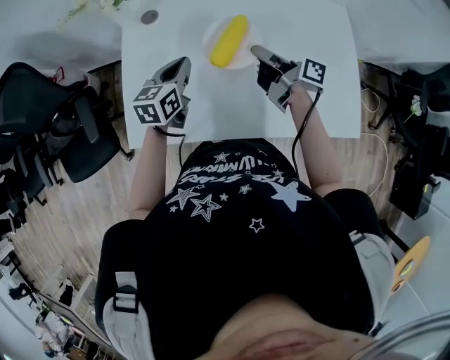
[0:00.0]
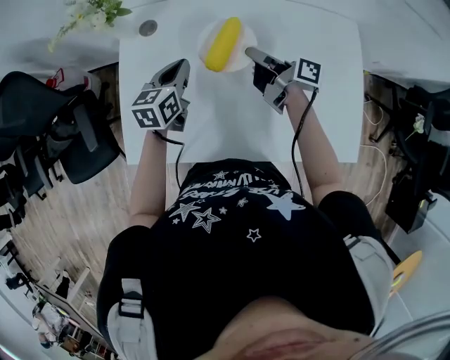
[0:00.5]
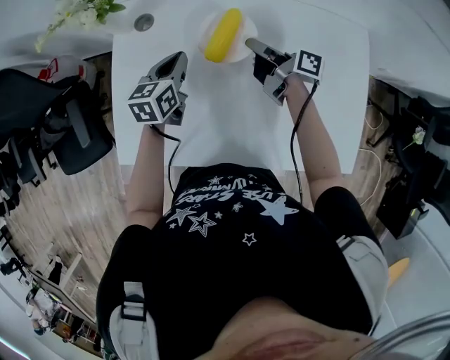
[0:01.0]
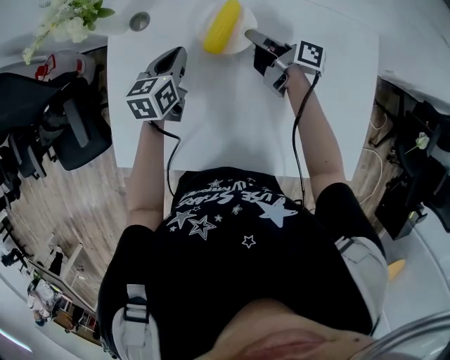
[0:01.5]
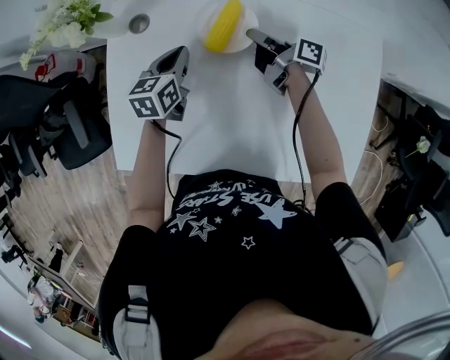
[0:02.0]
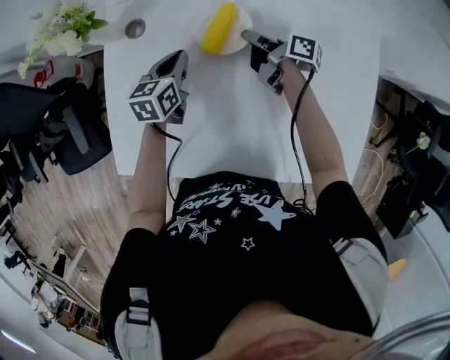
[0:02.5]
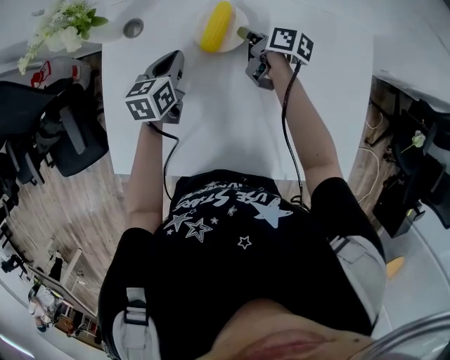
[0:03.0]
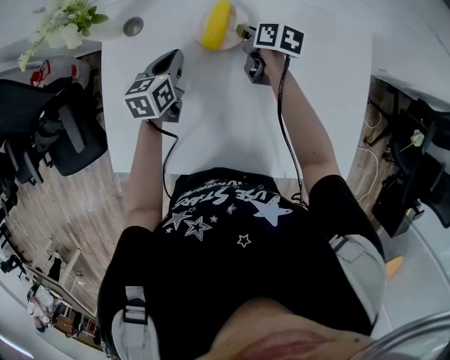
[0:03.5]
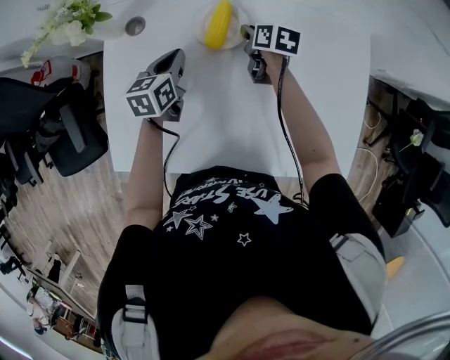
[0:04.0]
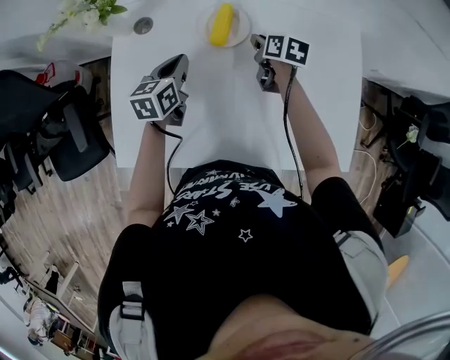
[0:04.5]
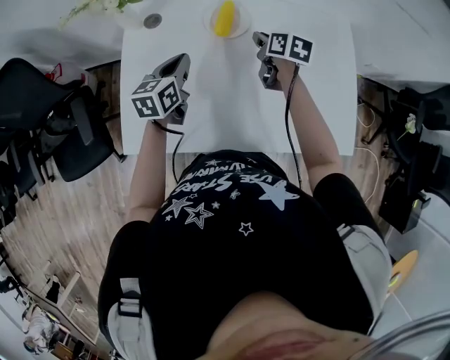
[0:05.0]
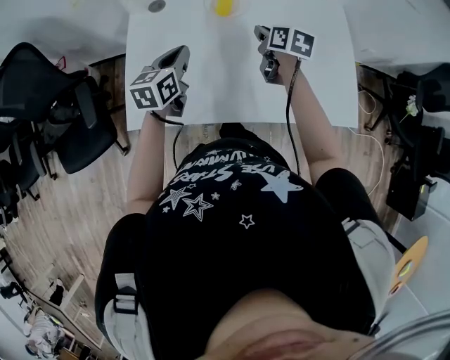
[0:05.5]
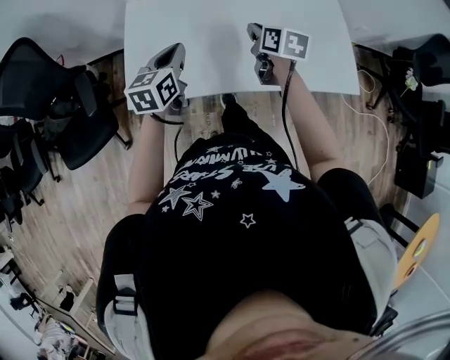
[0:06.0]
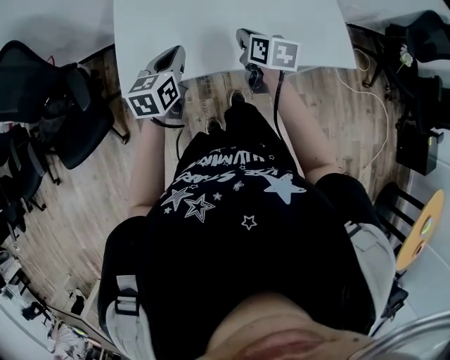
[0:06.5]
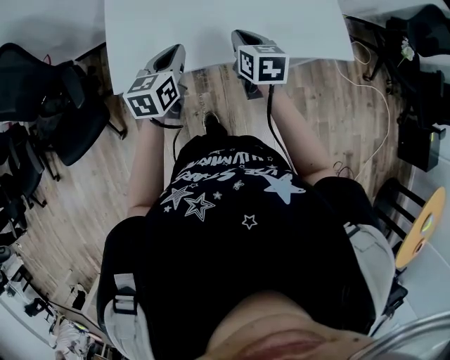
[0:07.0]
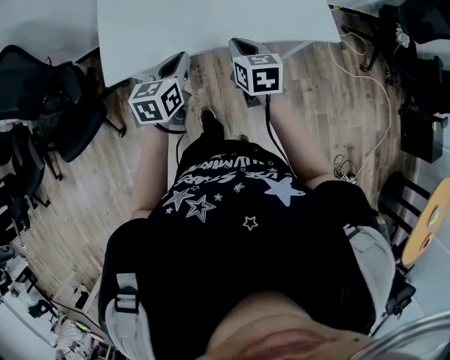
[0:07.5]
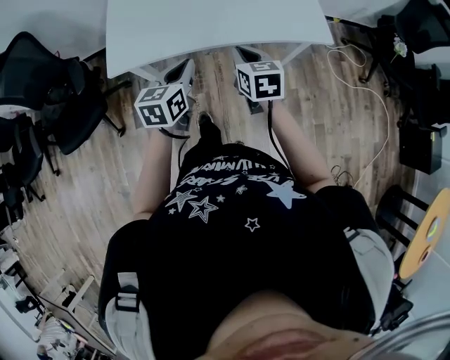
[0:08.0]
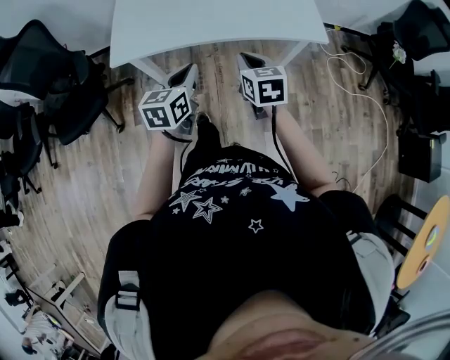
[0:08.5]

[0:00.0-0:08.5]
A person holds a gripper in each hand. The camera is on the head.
0:00.0 to 0:02.0: Both grippers move forward and downward, approximately 20 cm.
0:02.0 to 0:04.0: The right gripper points its fingers about 30 degrees further downward.
0:04.0 to 0:06.5: The two grippers go roughly 35 cm backward.
0:06.5 to 0:08.5: Both grippers move backward and to the right, some 25 cm. The right gripper changes its angle by approximately 20 degrees.

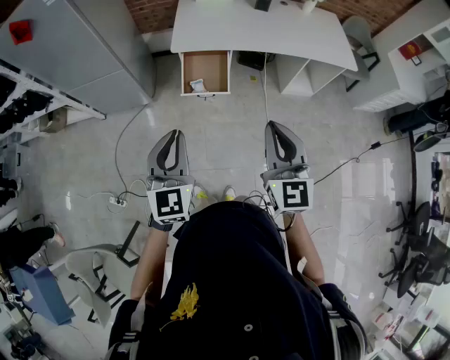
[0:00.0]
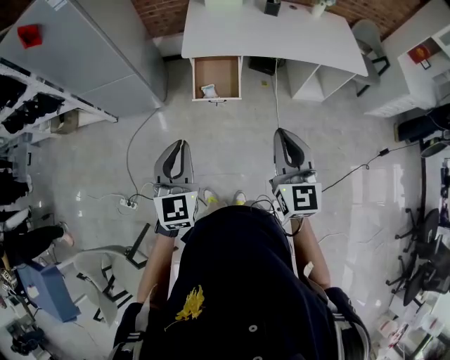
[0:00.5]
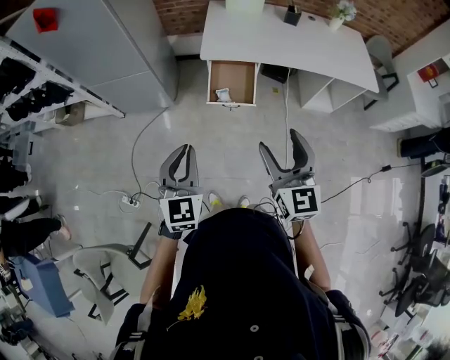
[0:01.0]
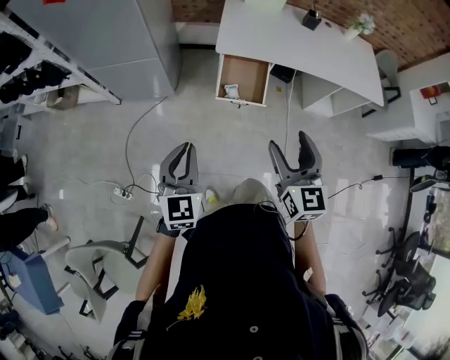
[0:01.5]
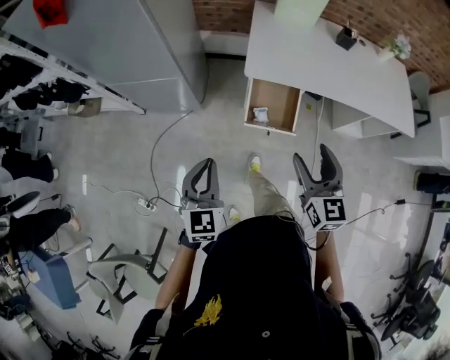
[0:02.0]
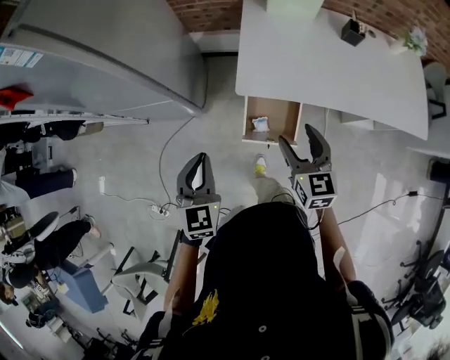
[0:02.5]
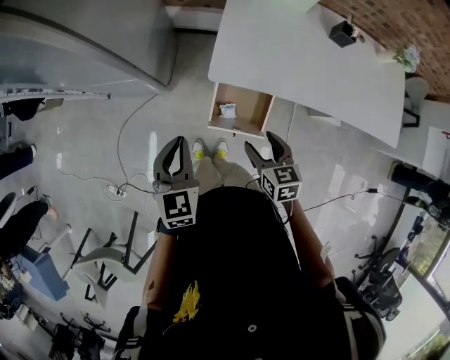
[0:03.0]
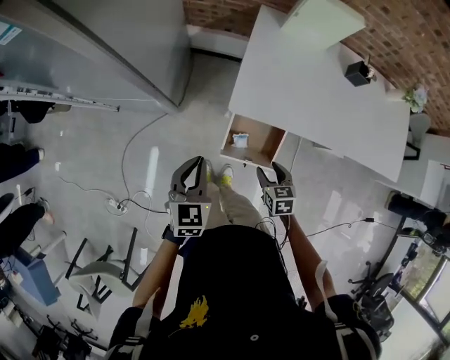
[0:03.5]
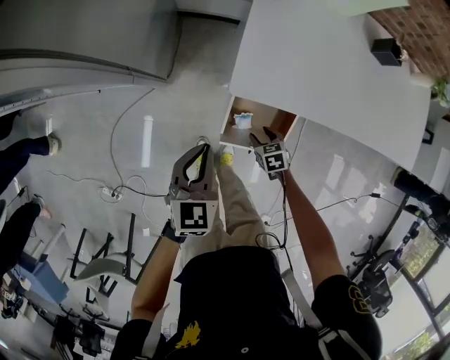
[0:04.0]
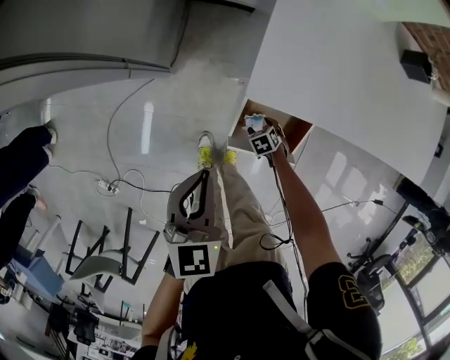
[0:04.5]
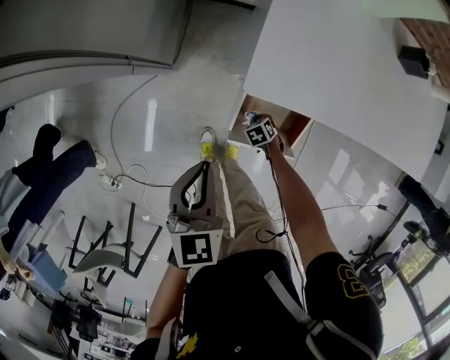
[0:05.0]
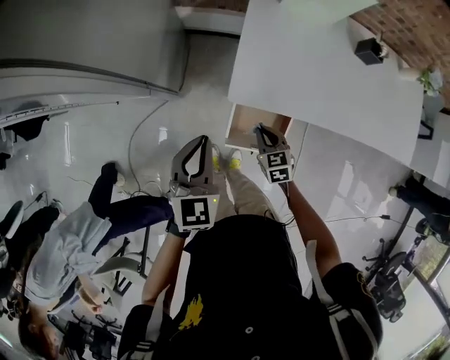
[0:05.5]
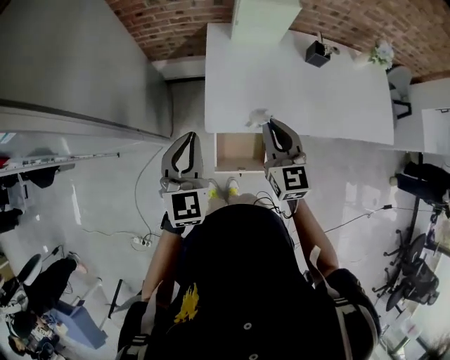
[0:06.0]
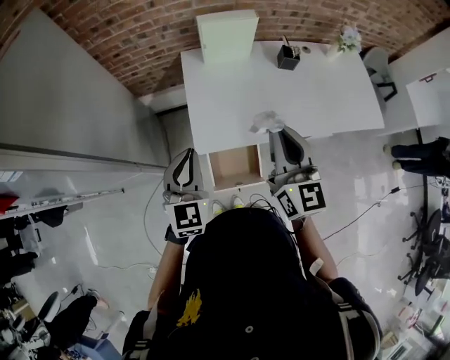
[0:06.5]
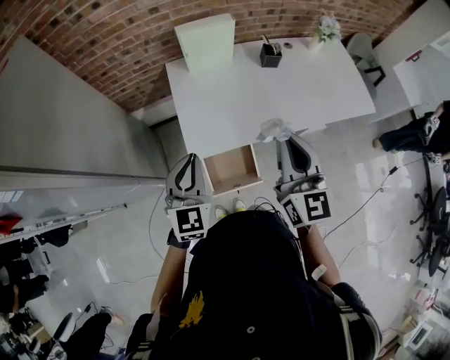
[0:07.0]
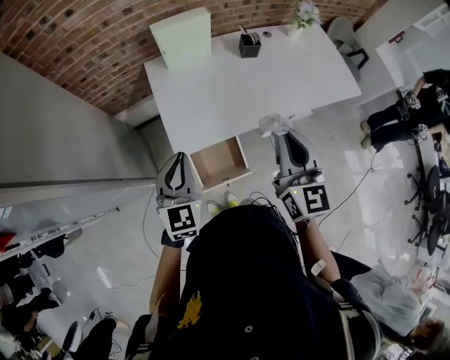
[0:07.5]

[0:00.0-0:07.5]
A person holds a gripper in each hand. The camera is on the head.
0:00.0 to 0:02.0: The two grippers go approximately 30 cm forward, to the left and downward. The right gripper opens.
0:02.0 to 0:04.0: The right gripper goes some 50 cm downward and forward, and points its fingers some 50 degrees further downward. Meanwhile the left gripper travels forward and downward by some 35 cm.
0:04.0 to 0:05.5: Both grippers travel together upward, roughly 15 cm. The right gripper swivels roughly 20 degrees, and closes up.
0:05.5 to 0:07.5: The right gripper goes roughly 40 cm upward, and angles its fingers upward, by about 40 degrees. The left gripper ends up about 20 cm from where it was, and rotates some 30 degrees.

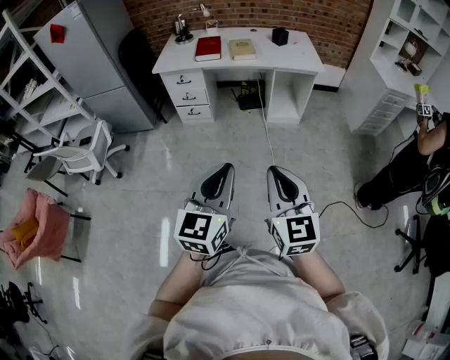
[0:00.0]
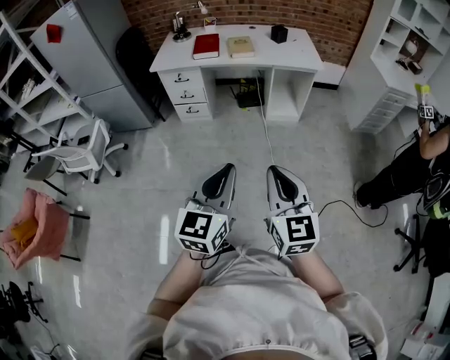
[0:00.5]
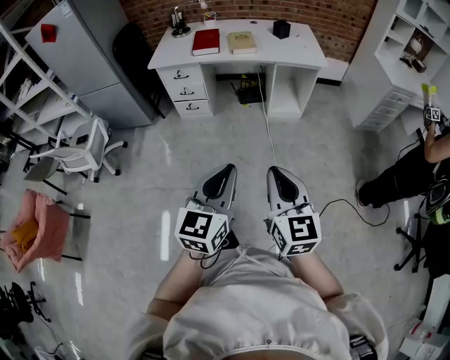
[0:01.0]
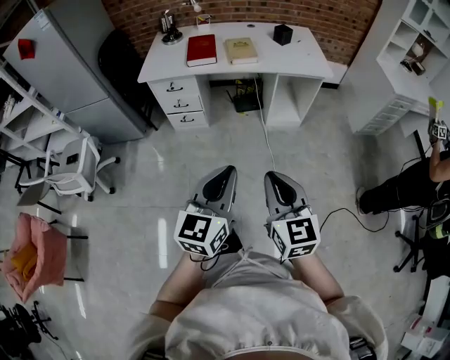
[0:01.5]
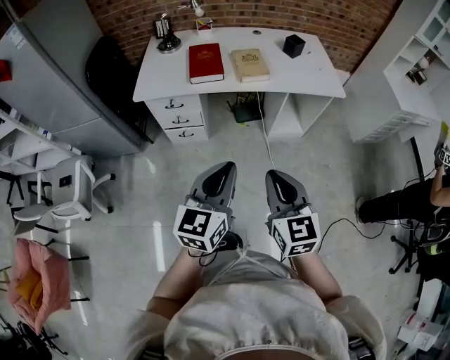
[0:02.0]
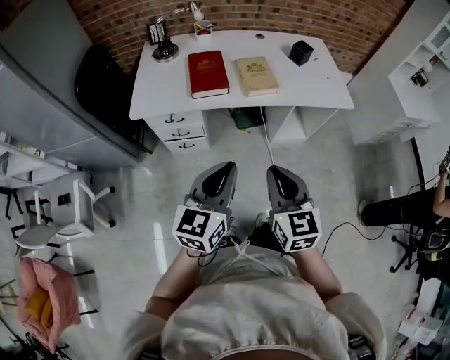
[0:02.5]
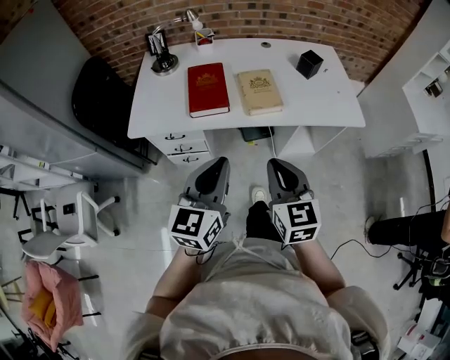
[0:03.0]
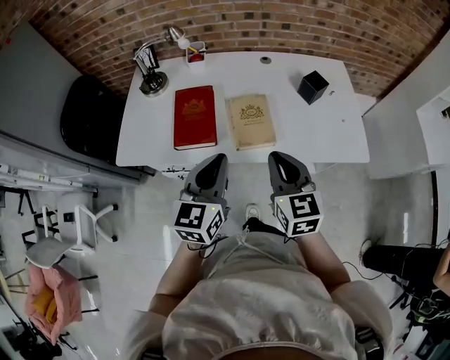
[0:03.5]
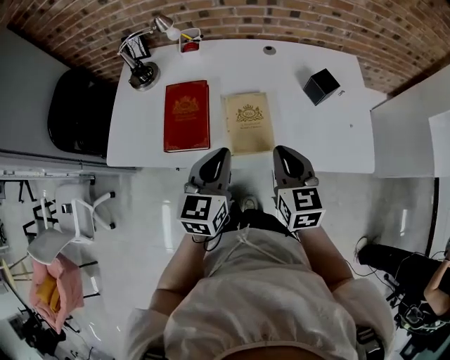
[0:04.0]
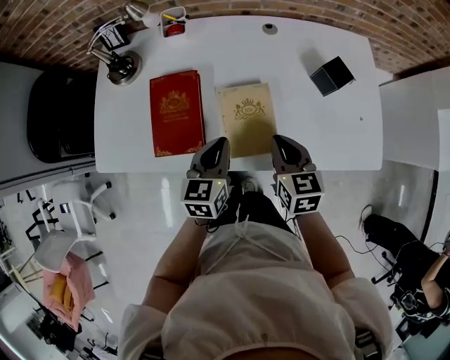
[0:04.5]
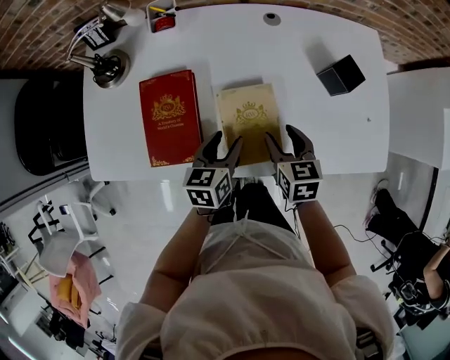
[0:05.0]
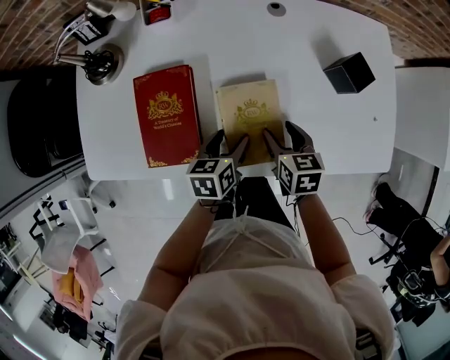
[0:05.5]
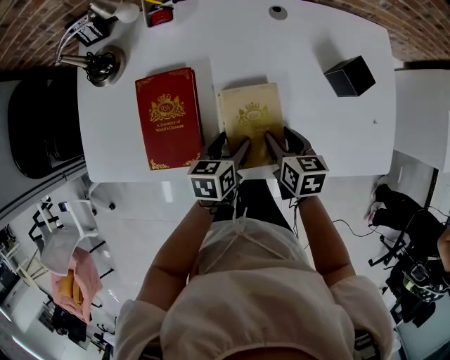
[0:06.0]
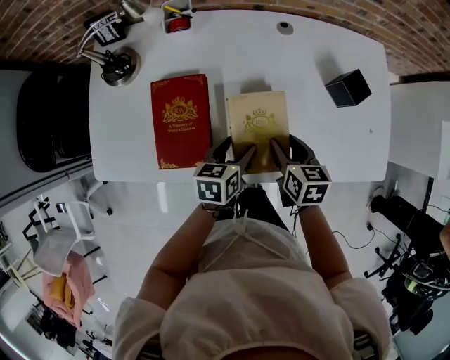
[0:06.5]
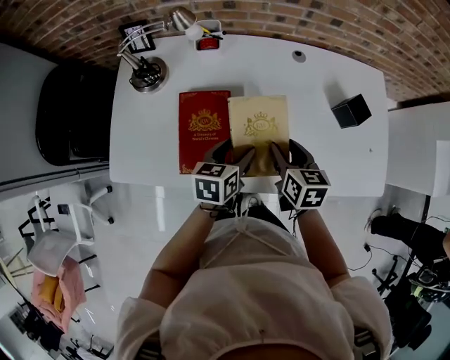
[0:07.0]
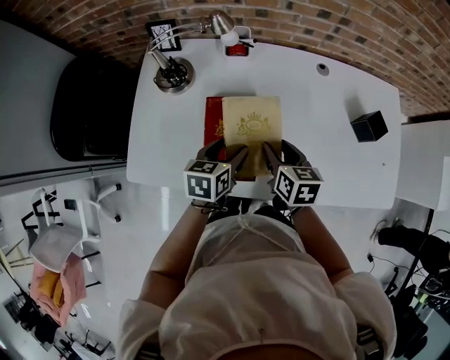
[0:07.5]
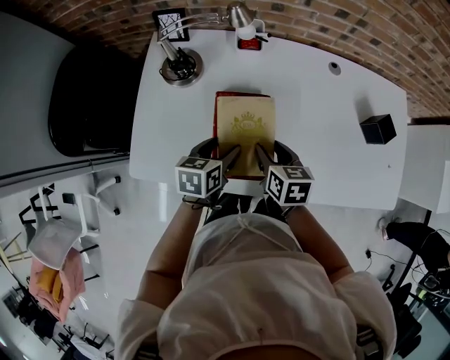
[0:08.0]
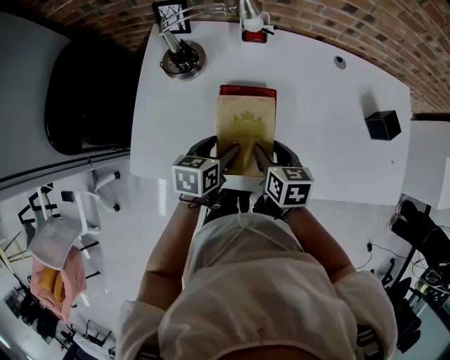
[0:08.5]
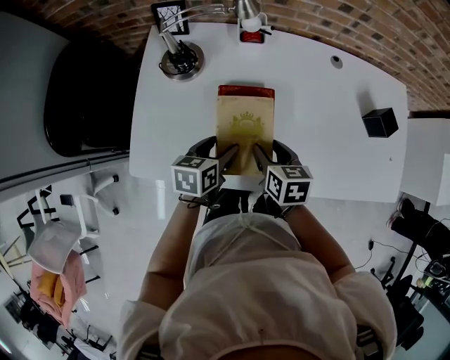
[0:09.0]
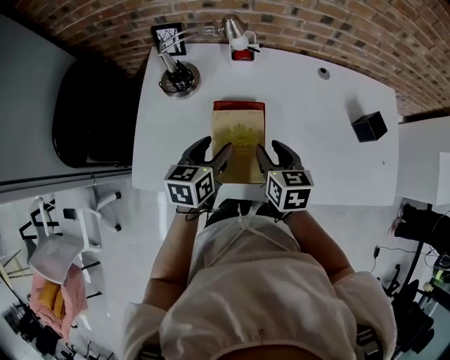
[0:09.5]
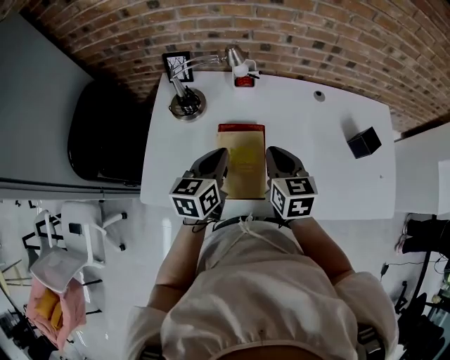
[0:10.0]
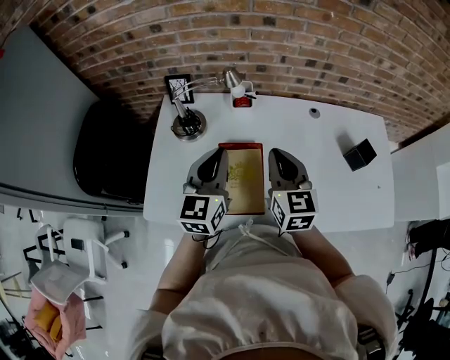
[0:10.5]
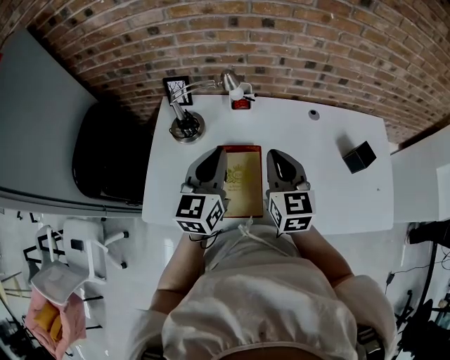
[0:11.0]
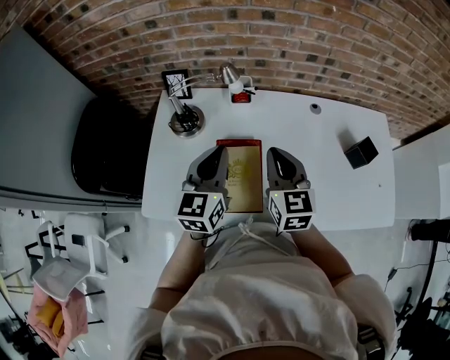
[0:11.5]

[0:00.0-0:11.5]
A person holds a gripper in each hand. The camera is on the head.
0:00.0 to 0:02.0: The right gripper goes roughly 35 cm forward and to the left. Meanwhile the left gripper travels forward by approximately 35 cm.
0:02.0 to 0:04.0: Both grippers are carried forward, approximately 50 cm.
0:04.0 to 0:06.0: The two grippers go roughly 25 cm downward and forward. The left gripper rotates some 40 degrees, and opens its fingers; the right gripper rotates about 30 degrees, and opens up.
0:06.0 to 0:07.5: The grippers both shift to the left and upward by roughly 20 cm.
0:07.5 to 0:09.5: Both grippers travel together to the left, about 5 cm.
0:09.5 to 0:11.5: The grippers both shift upward by some 15 cm. The left gripper turns by roughly 30 degrees, and closes its fingers; the right gripper changes its angle by approximately 30 degrees, and closes up.
